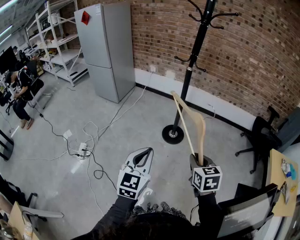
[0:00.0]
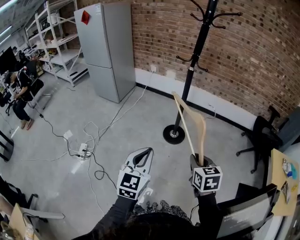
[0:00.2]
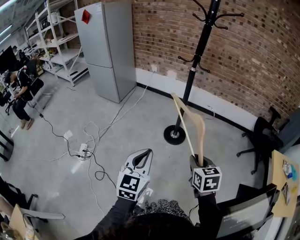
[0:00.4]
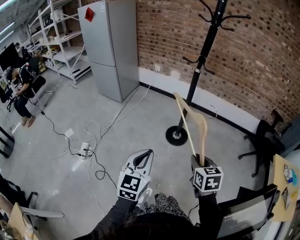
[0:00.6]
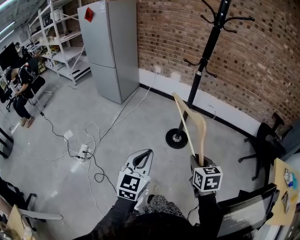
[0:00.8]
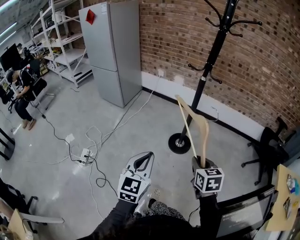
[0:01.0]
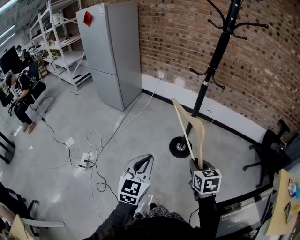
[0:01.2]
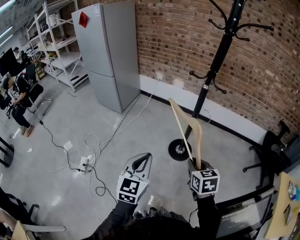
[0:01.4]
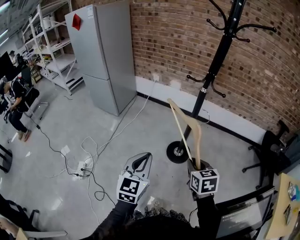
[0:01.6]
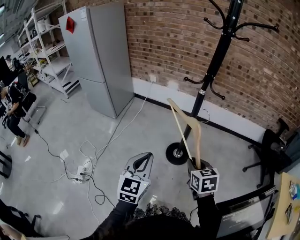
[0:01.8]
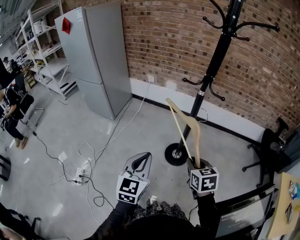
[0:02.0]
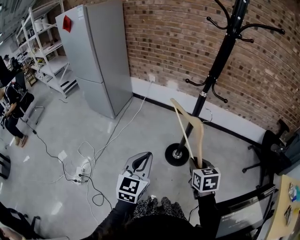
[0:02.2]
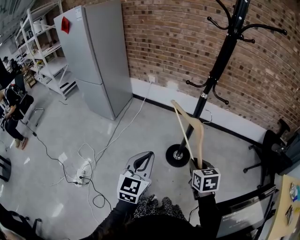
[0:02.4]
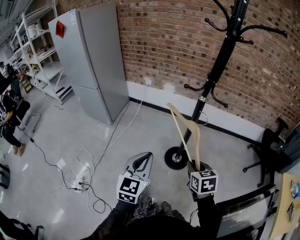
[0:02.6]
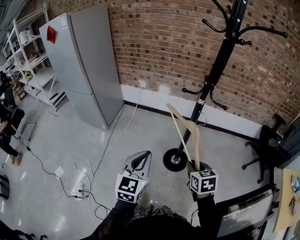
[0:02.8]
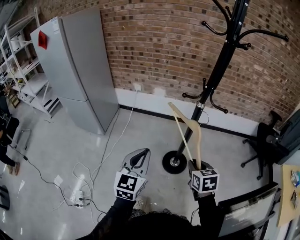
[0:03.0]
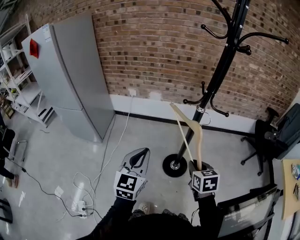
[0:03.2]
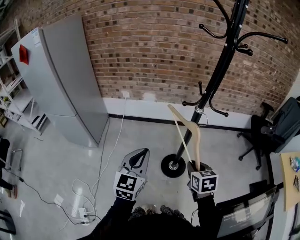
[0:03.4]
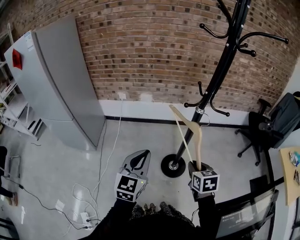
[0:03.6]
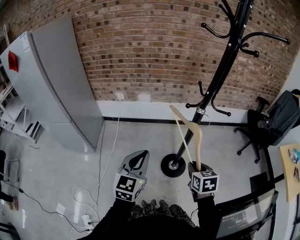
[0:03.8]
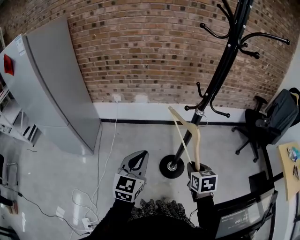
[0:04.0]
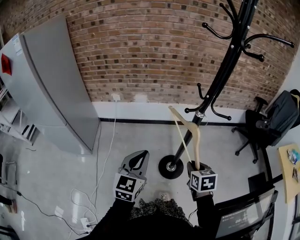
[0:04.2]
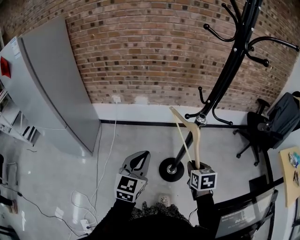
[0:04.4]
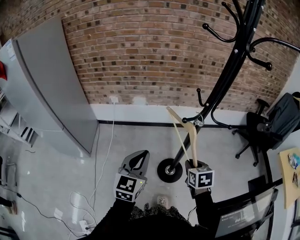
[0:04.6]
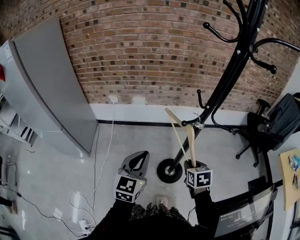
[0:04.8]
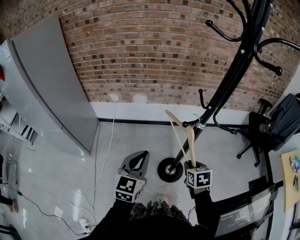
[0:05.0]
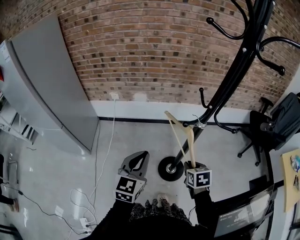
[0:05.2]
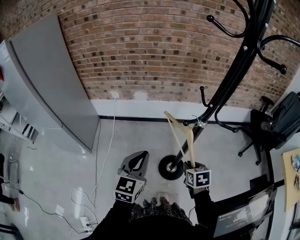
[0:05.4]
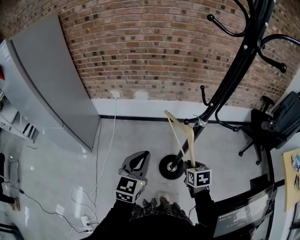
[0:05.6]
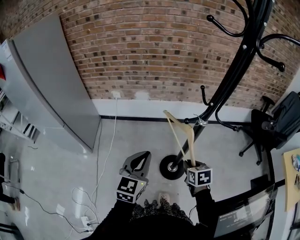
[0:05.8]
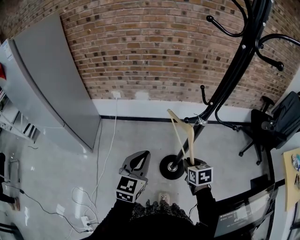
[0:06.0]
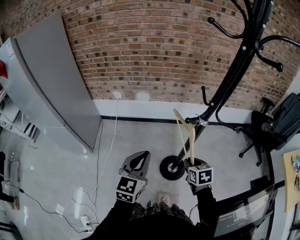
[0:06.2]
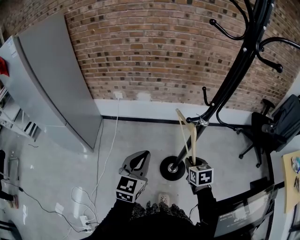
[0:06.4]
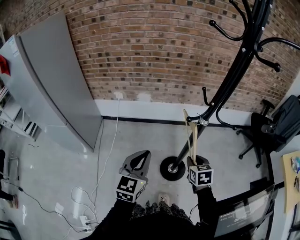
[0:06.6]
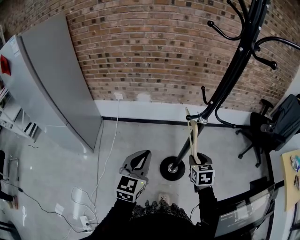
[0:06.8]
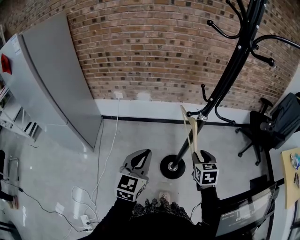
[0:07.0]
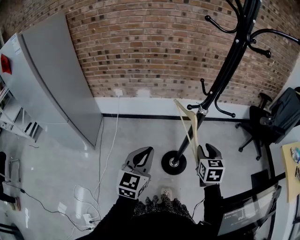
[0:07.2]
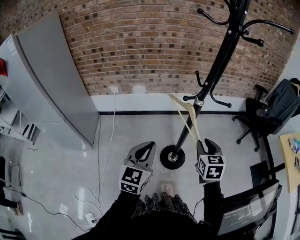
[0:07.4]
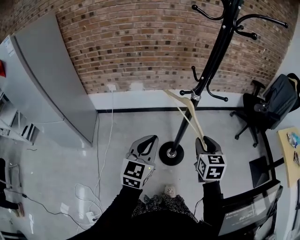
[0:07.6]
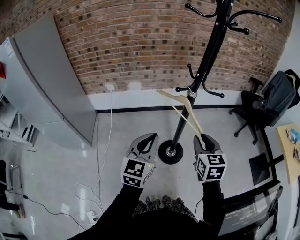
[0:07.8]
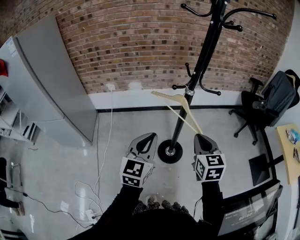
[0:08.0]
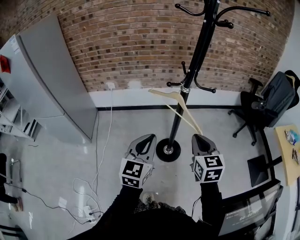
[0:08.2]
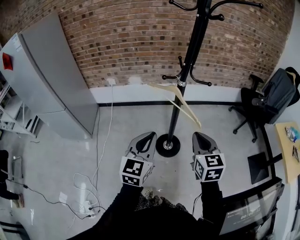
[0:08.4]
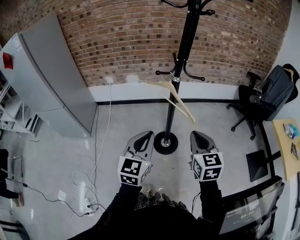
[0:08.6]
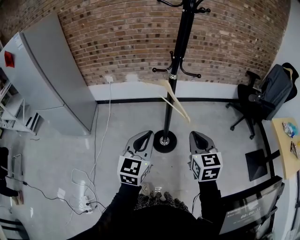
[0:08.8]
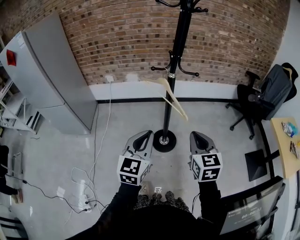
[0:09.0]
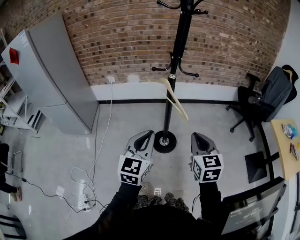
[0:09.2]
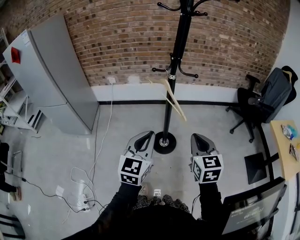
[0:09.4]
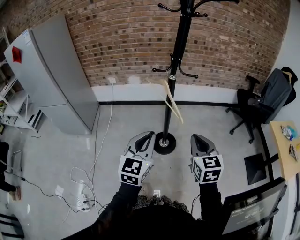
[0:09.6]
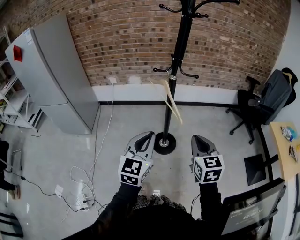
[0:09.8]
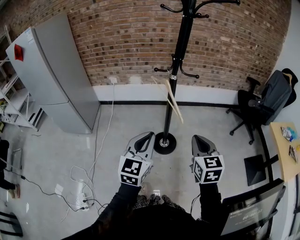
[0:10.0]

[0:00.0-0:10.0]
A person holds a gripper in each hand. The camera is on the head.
0:00.0 to 0:01.4: The two grippers go about 20 cm forward.
0:01.4 to 0:02.8: The grippers both shift forward by about 15 cm.
0:02.8 to 0:04.2: The right gripper heads forward and to the left, covering approximately 15 cm, and swivels approximately 20 degrees, while the left gripper travels forward and to the left by about 20 cm.
0:04.2 to 0:05.8: The right gripper is displaced forward and downward by about 10 cm. Meanwhile the left gripper travels forward by roughly 5 cm.
0:05.8 to 0:07.2: The right gripper is displaced upward by roughly 10 cm, and changes its angle by approximately 20 degrees. Meanwhile the left gripper goes some 5 cm backward.
0:07.2 to 0:08.6: The right gripper goes some 20 cm backward, to the right and upward, and closes its fingers; the left gripper travels to the right and backward by some 15 cm.
0:08.6 to 0:10.0: Both grippers travel together backward, about 5 cm.

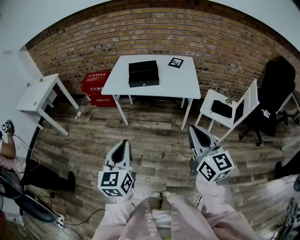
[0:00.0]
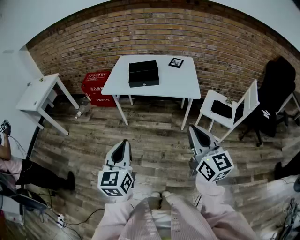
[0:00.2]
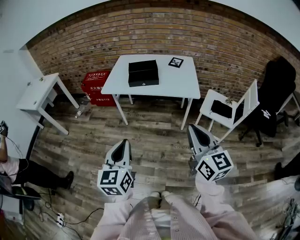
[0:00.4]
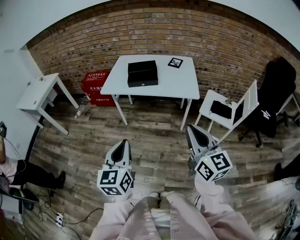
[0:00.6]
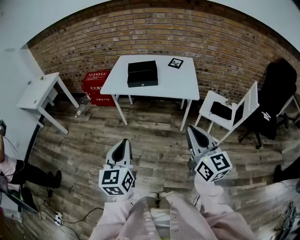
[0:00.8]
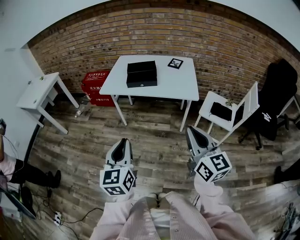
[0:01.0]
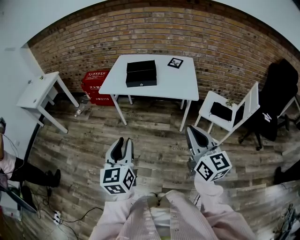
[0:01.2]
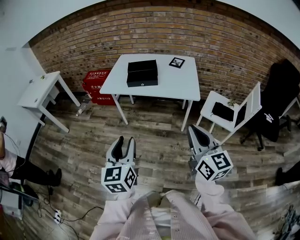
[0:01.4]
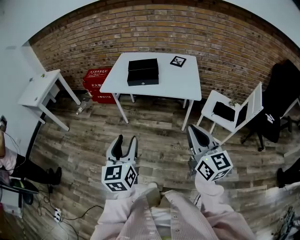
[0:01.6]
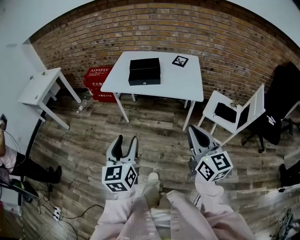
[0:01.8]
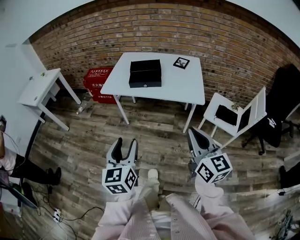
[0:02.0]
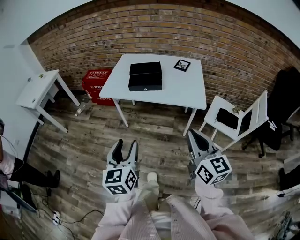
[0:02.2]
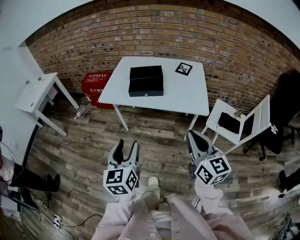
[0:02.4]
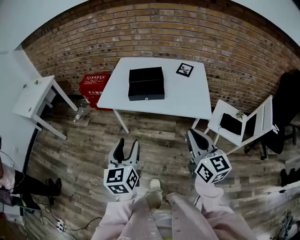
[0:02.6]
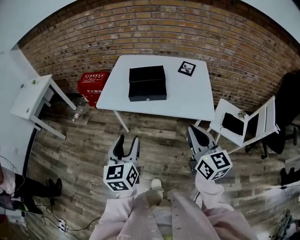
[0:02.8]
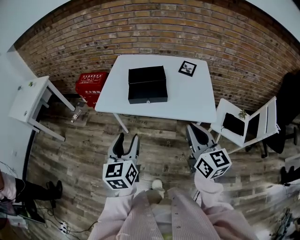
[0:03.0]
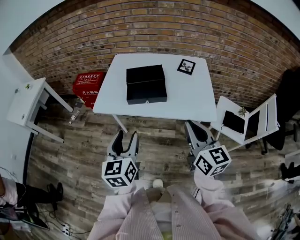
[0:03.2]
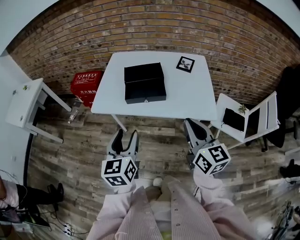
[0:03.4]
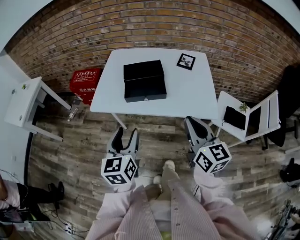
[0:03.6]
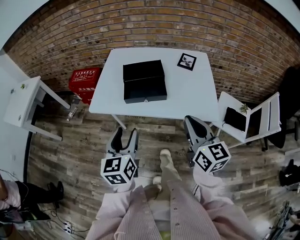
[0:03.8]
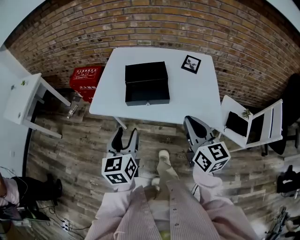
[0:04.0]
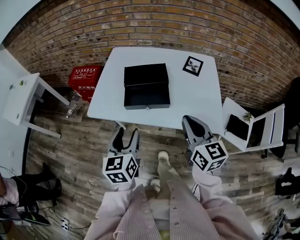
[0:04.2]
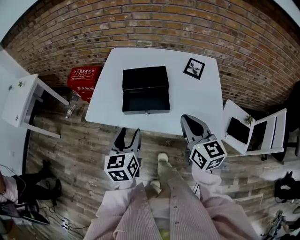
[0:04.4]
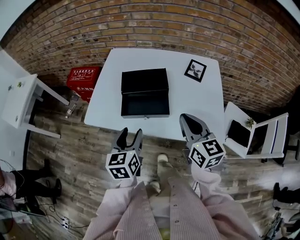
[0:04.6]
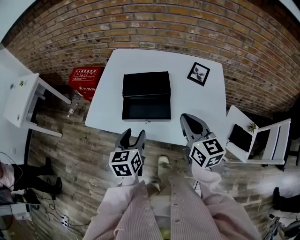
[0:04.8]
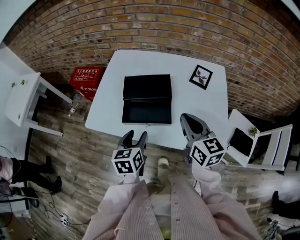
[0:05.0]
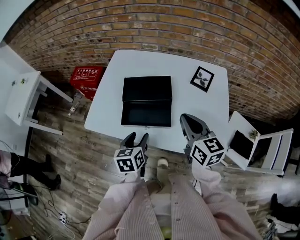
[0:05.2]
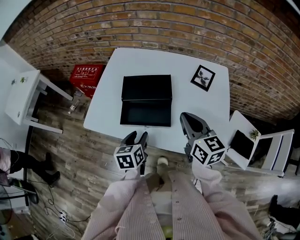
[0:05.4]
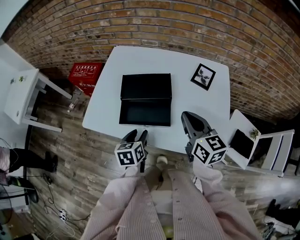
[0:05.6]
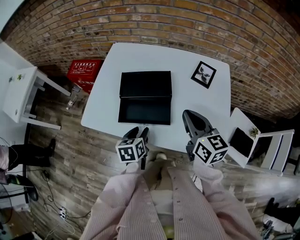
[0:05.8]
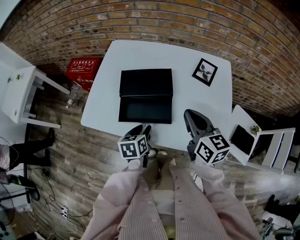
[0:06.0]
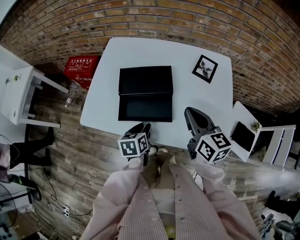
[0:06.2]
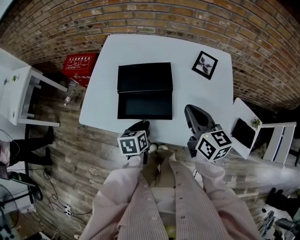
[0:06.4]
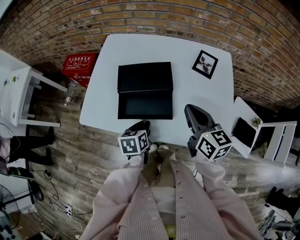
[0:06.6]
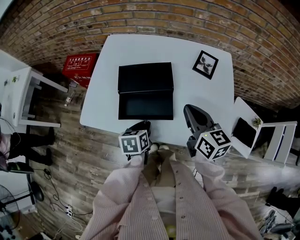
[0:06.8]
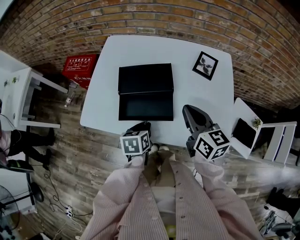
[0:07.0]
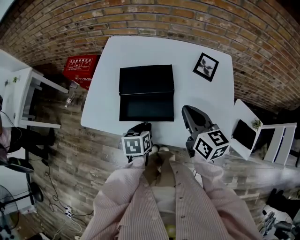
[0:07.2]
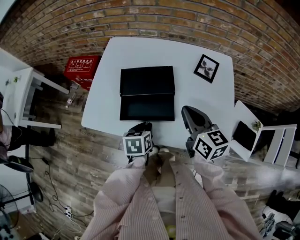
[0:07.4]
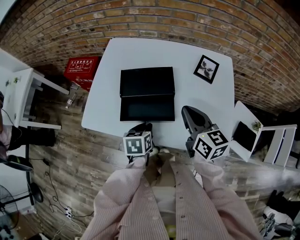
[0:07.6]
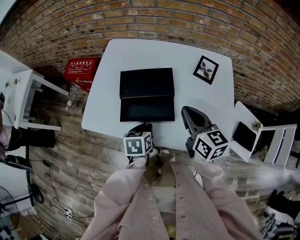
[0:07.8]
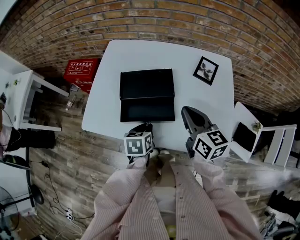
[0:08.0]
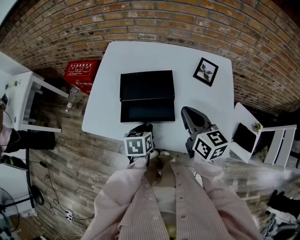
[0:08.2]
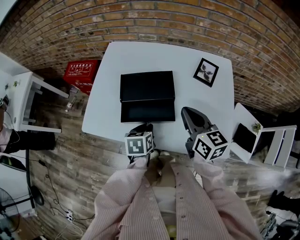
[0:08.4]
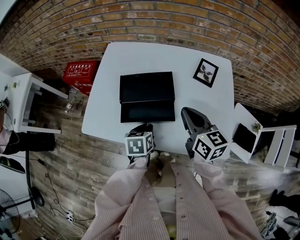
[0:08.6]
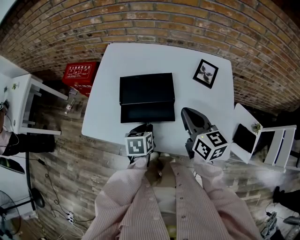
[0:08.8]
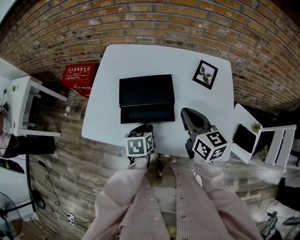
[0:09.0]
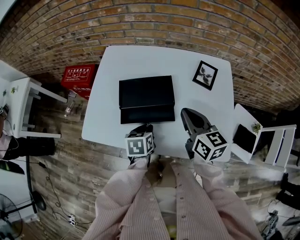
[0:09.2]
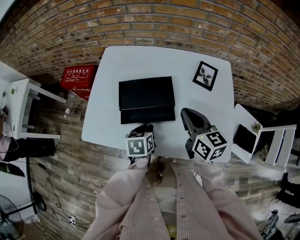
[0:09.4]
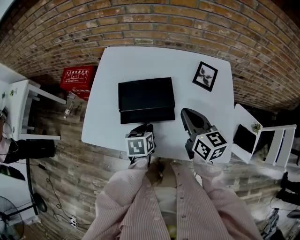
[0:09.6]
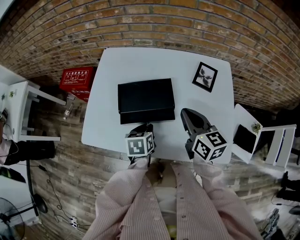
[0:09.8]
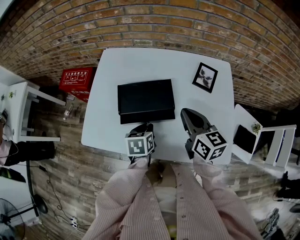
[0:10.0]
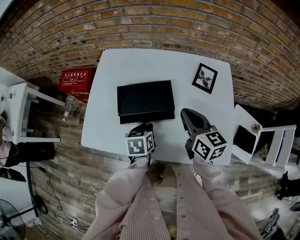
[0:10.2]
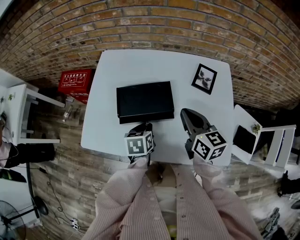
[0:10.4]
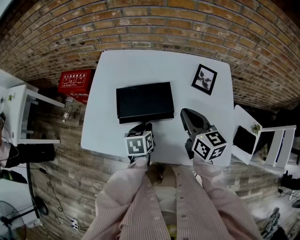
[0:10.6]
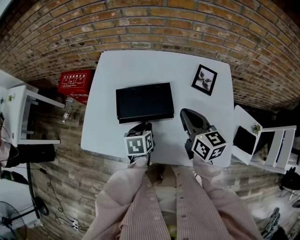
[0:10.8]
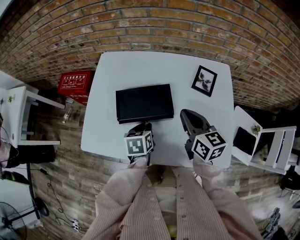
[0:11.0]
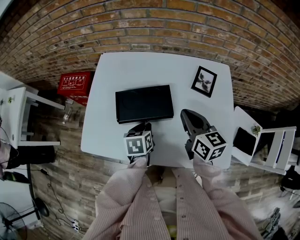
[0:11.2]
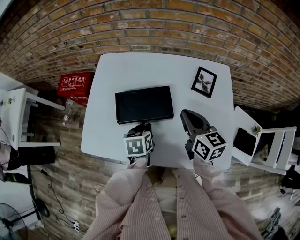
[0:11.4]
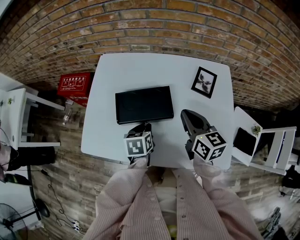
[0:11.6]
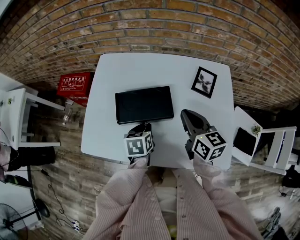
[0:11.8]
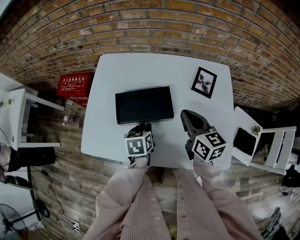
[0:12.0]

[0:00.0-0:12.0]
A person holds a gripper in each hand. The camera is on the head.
0:00.0 to 0:01.6: The right gripper moves some 5 cm. The left gripper ends up approximately 5 cm from where it was, and opens up.
0:01.6 to 0:03.0: Both grippers travel together forward, roughly 25 cm.
0:03.0 to 0:04.4: The two grippers go approximately 15 cm forward.
0:04.4 to 0:06.0: The right gripper heads forward, covering about 10 cm. The left gripper shifts some 20 cm downward, forward and to the right, and swivels approximately 30 degrees.
0:06.0 to 0:07.6: The left gripper closes.
0:07.6 to 0:09.0: The grippers stay close to where they were, moving slightly.
0:09.0 to 0:10.4: The grippers make only small movements.
0:10.4 to 0:12.0: There are only small adjustments of the grippers.

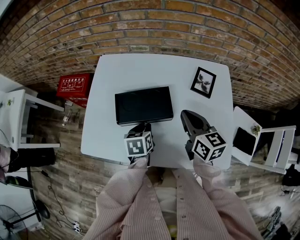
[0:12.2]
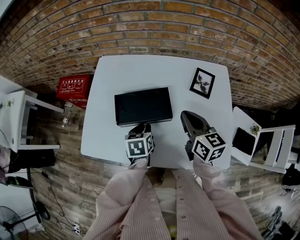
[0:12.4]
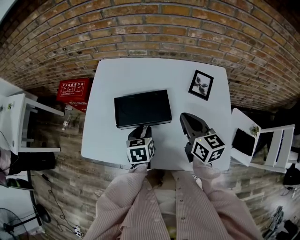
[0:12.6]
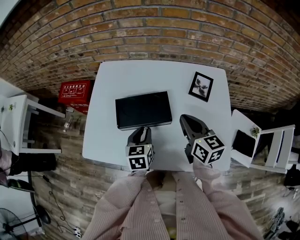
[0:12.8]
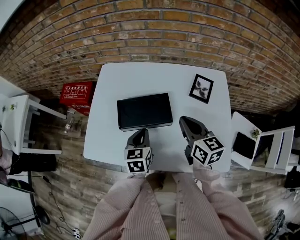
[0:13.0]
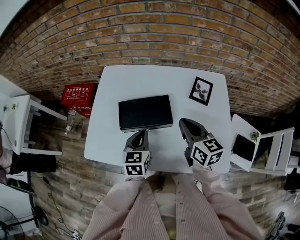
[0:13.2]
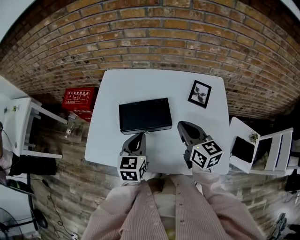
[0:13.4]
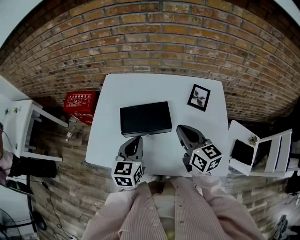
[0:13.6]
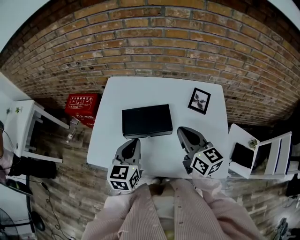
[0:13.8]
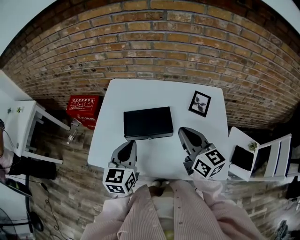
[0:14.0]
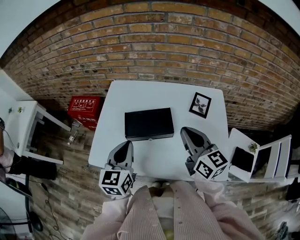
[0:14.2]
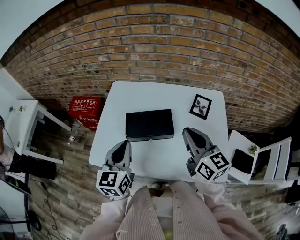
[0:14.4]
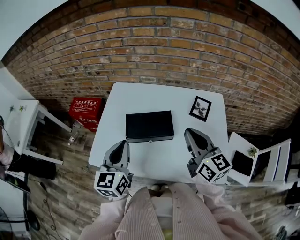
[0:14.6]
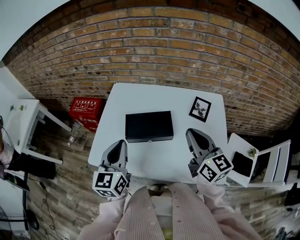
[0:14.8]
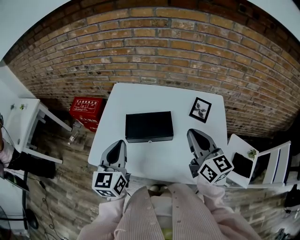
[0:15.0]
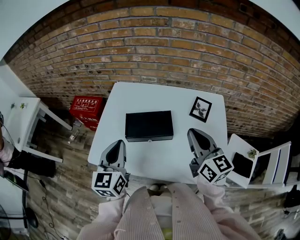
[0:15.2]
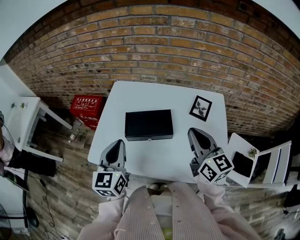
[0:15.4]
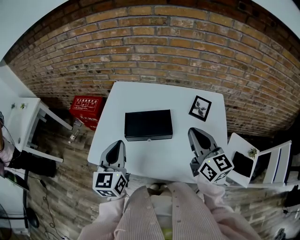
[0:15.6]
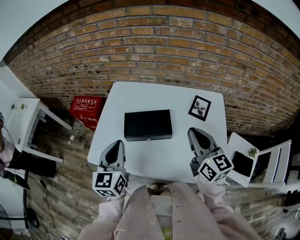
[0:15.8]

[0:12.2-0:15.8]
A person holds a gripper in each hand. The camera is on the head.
0:12.2 to 0:14.0: The left gripper heads upward, covering roughly 20 cm, and tips its fingers upward by about 30 degrees. The right gripper shifts roughly 10 cm upward.
0:14.0 to 0:15.8: The left gripper ends up roughly 5 cm from where it was. Meanwhile the right gripper changes place by roughly 5 cm.
